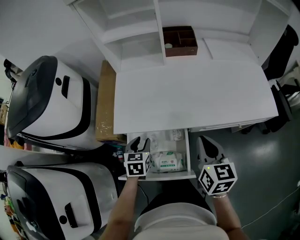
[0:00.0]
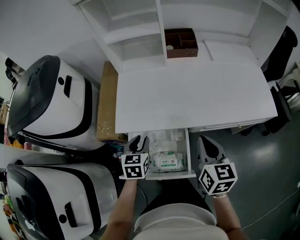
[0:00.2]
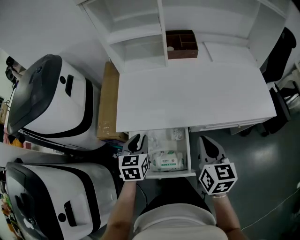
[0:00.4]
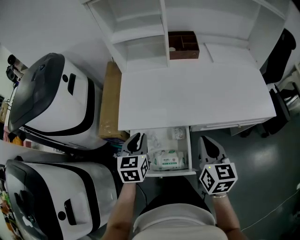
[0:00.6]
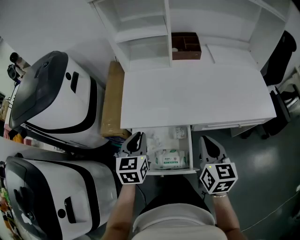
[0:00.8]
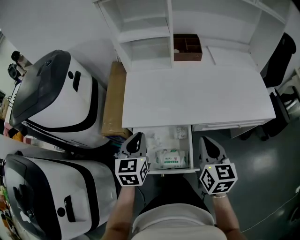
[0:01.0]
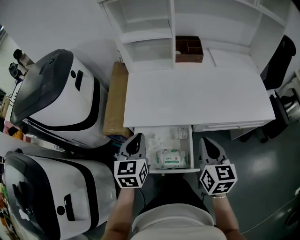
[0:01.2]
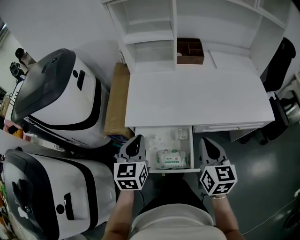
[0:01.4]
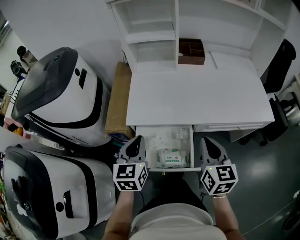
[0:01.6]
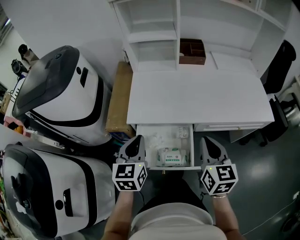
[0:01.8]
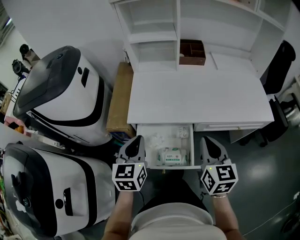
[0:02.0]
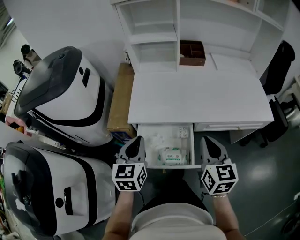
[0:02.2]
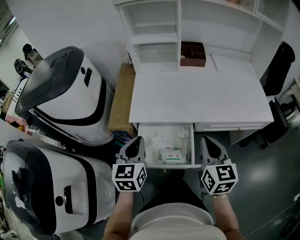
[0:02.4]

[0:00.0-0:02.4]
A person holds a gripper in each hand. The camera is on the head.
0:00.0 to 0:01.2: The left gripper goes roughly 15 cm upward, rotates about 20 degrees, and closes. Meanwhile the right gripper moves some 5 cm.
0:01.2 to 0:02.4: The left gripper heads backward, covering approximately 5 cm.

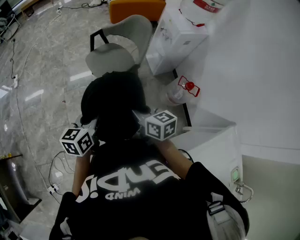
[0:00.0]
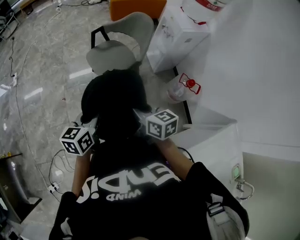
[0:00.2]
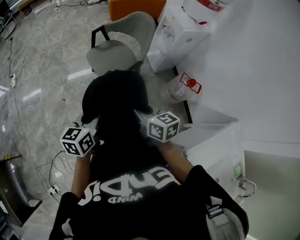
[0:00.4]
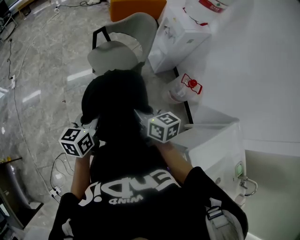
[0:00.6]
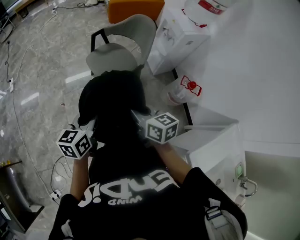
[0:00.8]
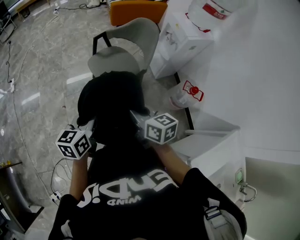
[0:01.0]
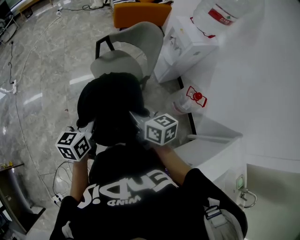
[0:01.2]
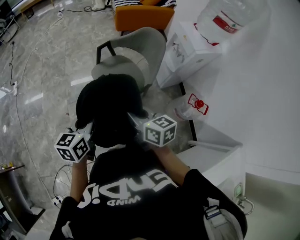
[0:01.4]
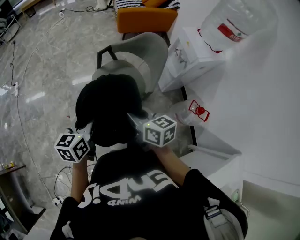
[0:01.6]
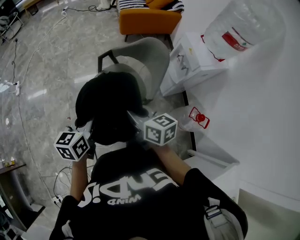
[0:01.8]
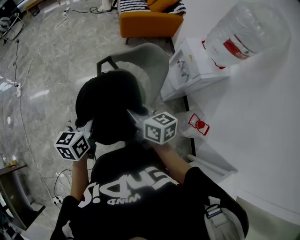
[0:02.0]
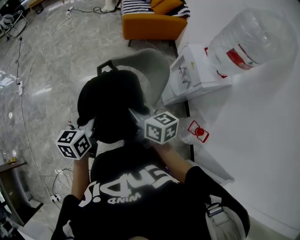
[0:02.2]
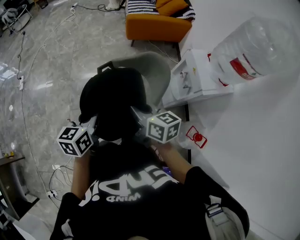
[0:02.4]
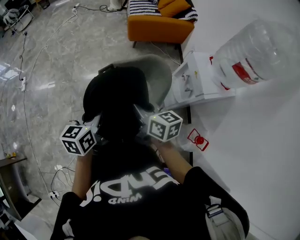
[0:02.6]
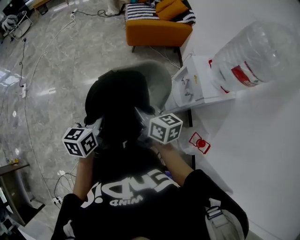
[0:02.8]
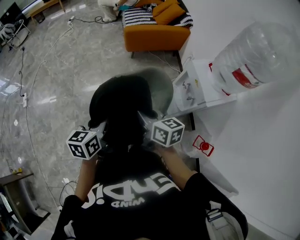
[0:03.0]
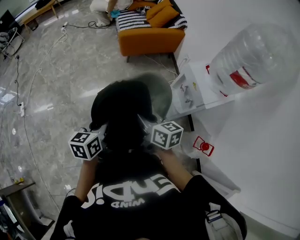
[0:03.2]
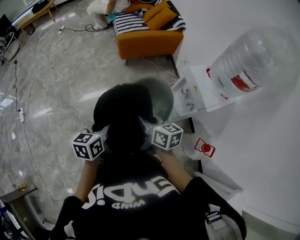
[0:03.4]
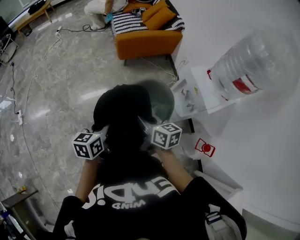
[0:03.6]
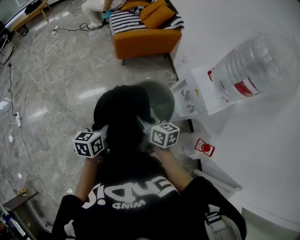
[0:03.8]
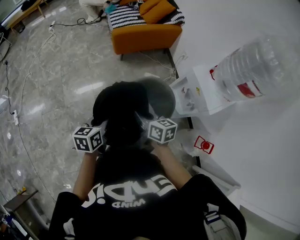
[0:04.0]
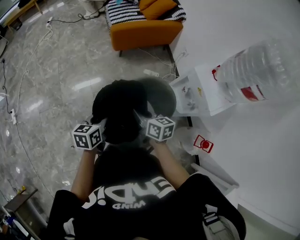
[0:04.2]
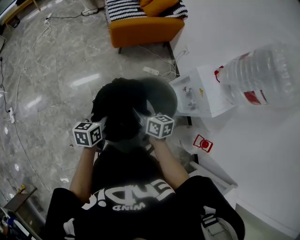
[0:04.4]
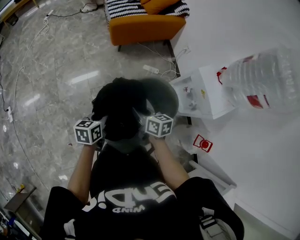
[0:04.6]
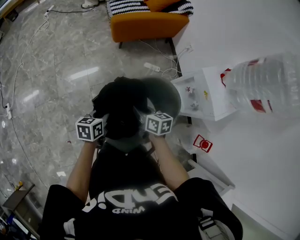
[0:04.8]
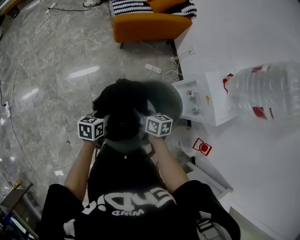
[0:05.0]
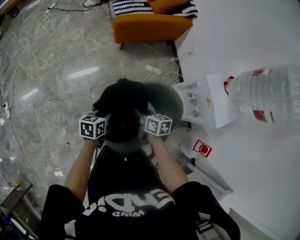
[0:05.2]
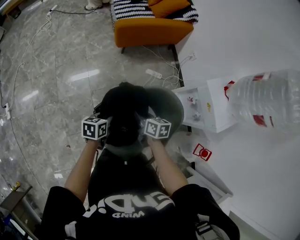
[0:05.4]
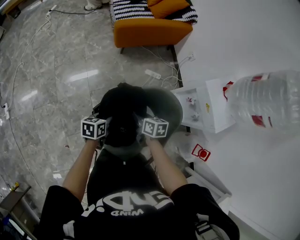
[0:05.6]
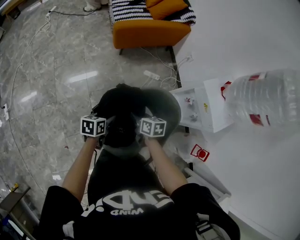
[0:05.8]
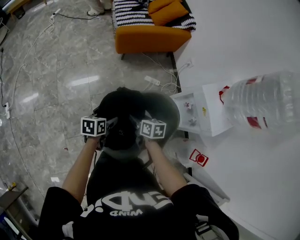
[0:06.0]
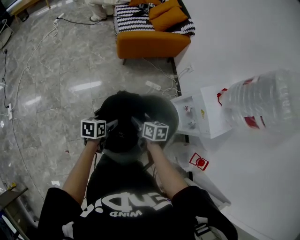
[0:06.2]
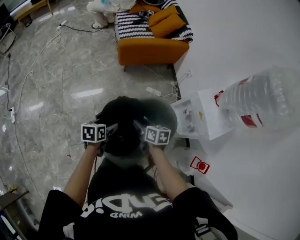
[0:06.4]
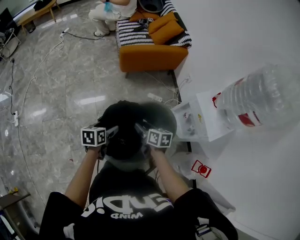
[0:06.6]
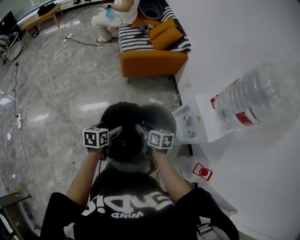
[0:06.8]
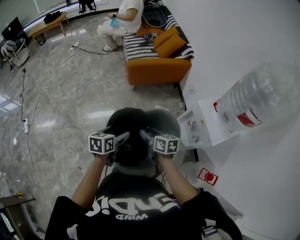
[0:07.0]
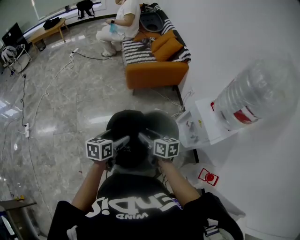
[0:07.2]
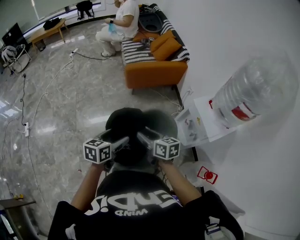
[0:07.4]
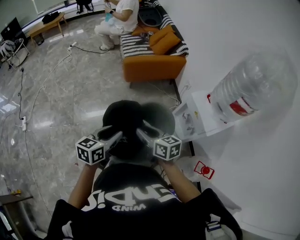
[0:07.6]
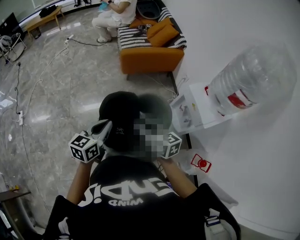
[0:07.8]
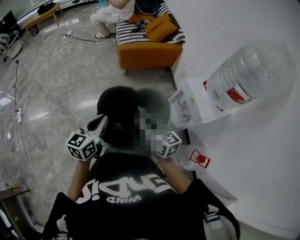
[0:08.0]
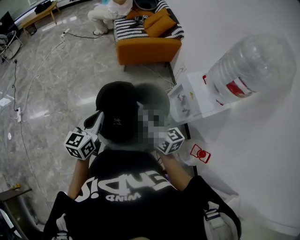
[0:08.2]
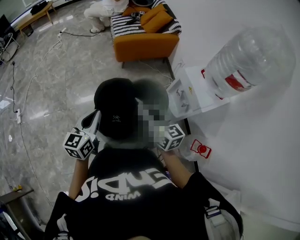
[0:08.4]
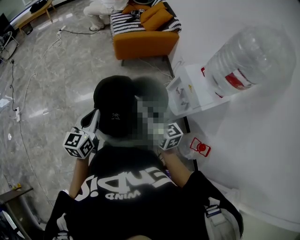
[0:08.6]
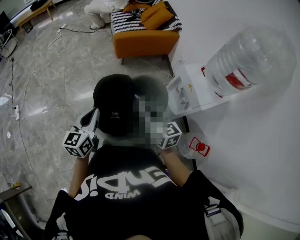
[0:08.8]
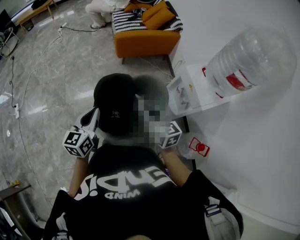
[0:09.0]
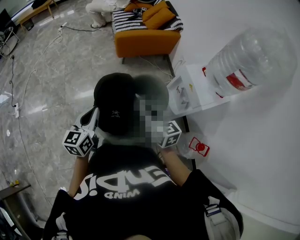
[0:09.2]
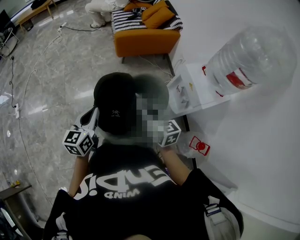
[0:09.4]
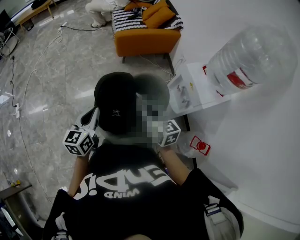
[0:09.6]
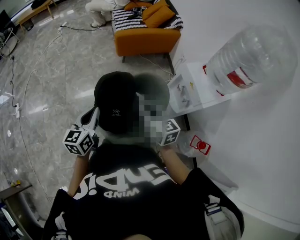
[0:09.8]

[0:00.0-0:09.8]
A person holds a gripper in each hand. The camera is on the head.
0:00.0 to 0:01.4: Both grippers travel together forward and to the left, roughly 20 cm.
0:01.4 to 0:02.8: Both grippers move forward and to the right, about 35 cm.
0:02.8 to 0:04.2: Both grippers move forward and downward, some 20 cm.
0:04.2 to 0:05.6: The two grippers go approximately 15 cm downward and forward.
0:05.6 to 0:07.0: The left gripper is displaced upward by about 15 cm, and opens up. Meanwhile the right gripper heads upward and backward, covering some 15 cm, and opens up.
0:07.0 to 0:08.4: Both grippers travel together upward and backward, about 15 cm. The left gripper rotates approximately 30 degrees, and closes. Meanwhile the right gripper turns by about 30 degrees, and closes.
0:08.4 to 0:09.8: There are only small adjustments of the grippers.

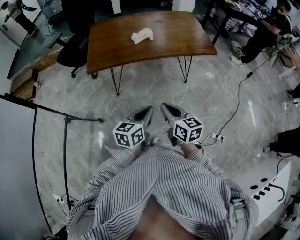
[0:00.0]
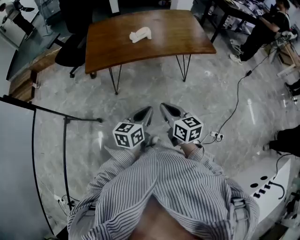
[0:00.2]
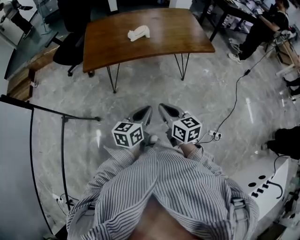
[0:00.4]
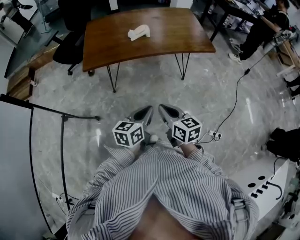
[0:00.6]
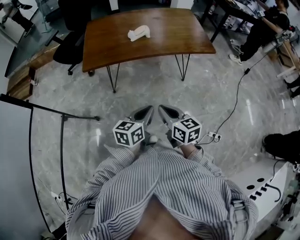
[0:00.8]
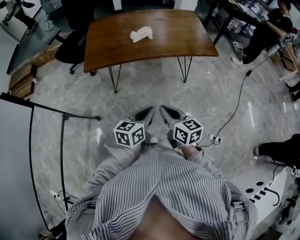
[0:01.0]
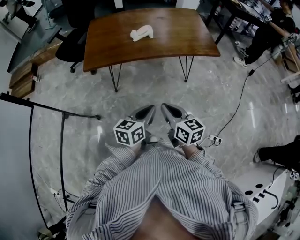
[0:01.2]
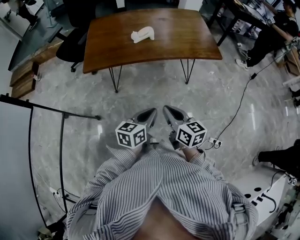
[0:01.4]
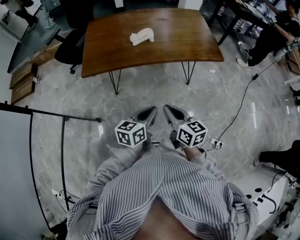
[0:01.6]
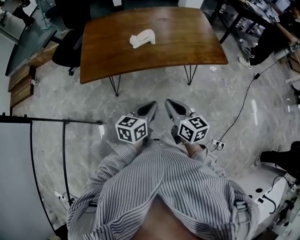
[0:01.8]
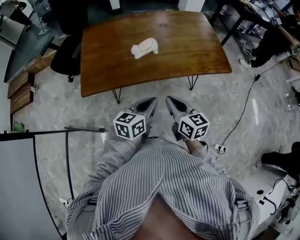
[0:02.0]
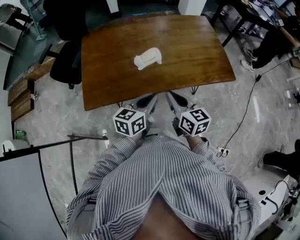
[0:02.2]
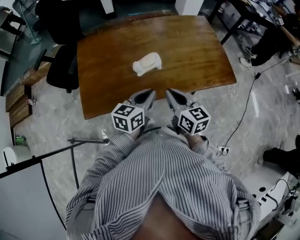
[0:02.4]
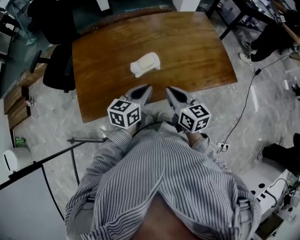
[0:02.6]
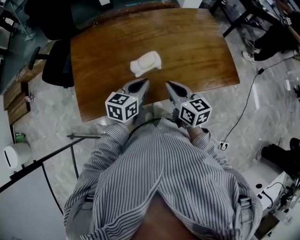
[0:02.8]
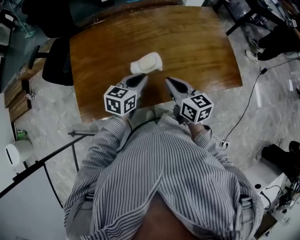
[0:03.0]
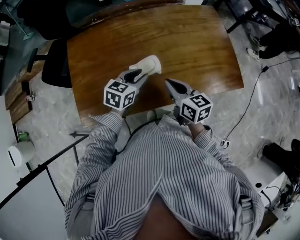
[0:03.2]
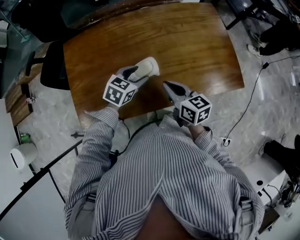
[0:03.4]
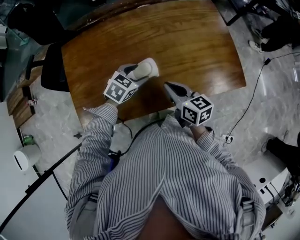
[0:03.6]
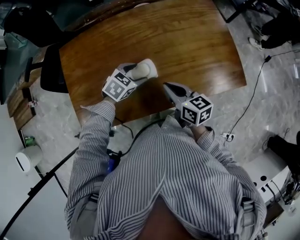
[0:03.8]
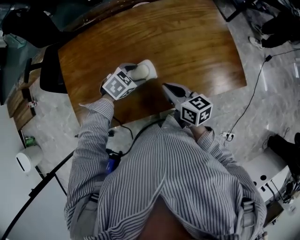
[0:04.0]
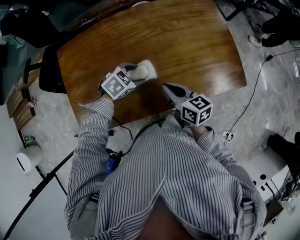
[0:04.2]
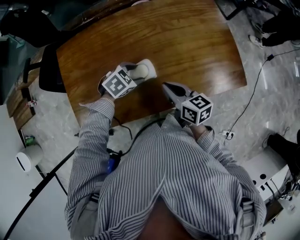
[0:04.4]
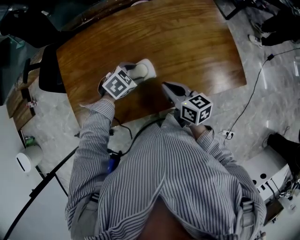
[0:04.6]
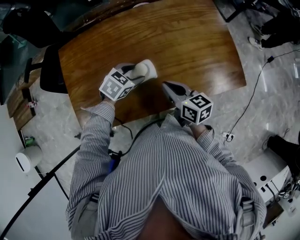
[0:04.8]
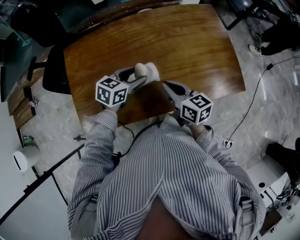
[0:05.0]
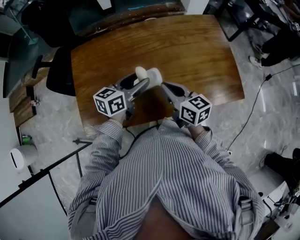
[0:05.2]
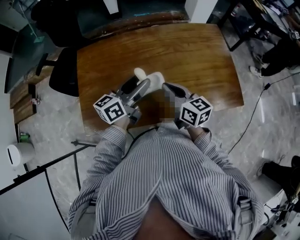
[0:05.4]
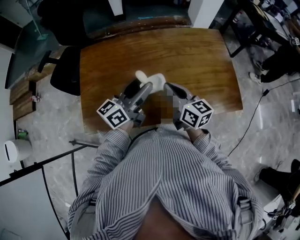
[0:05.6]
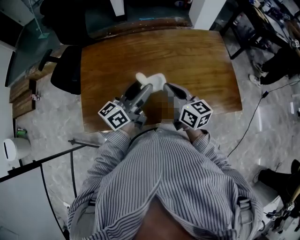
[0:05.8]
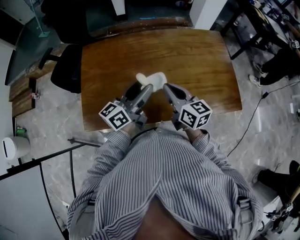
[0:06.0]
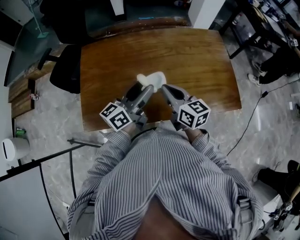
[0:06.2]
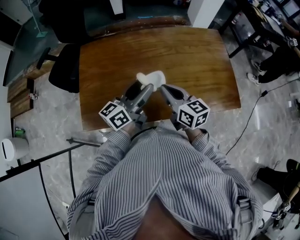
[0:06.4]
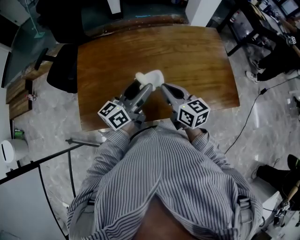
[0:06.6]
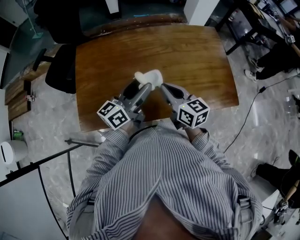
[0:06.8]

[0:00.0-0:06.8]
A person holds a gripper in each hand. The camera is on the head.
0:00.0 to 0:01.4: The right gripper ends up some 5 cm from where it was. The left gripper changes place by approximately 5 cm.
0:01.4 to 0:02.8: Both grippers are carried forward, some 40 cm.
0:02.8 to 0:04.0: The left gripper moves forward and downward, some 15 cm, tips its fingers downward by roughly 30 degrees, and opens its fingers. The right gripper is displaced forward and downward by about 10 cm.
0:04.0 to 0:05.4: The left gripper moves upward, roughly 20 cm, and points its fingers about 50 degrees further upward. The right gripper shifts approximately 5 cm upward.
0:05.4 to 0:06.8: There are only small adjustments of the grippers.

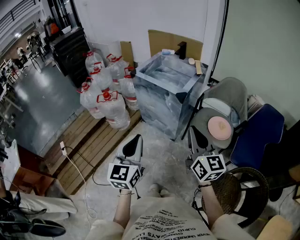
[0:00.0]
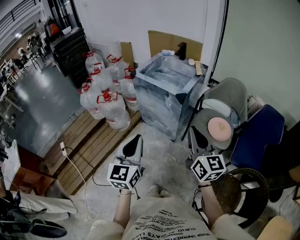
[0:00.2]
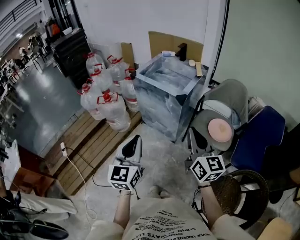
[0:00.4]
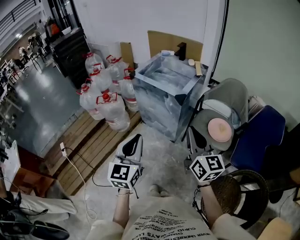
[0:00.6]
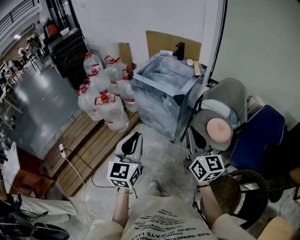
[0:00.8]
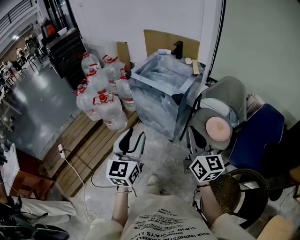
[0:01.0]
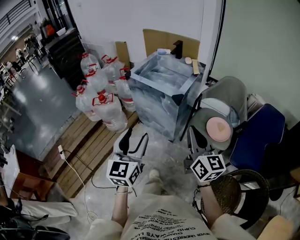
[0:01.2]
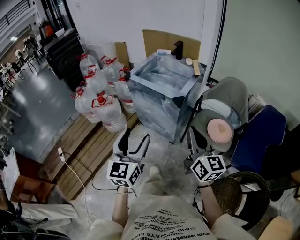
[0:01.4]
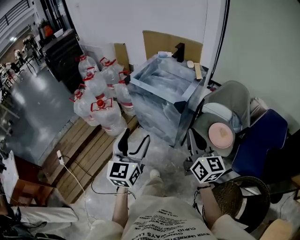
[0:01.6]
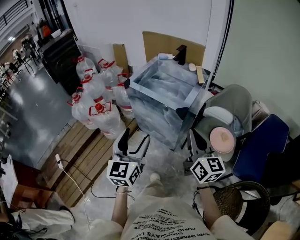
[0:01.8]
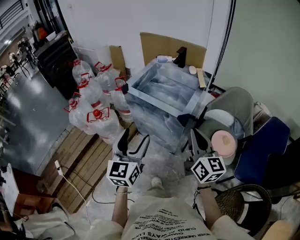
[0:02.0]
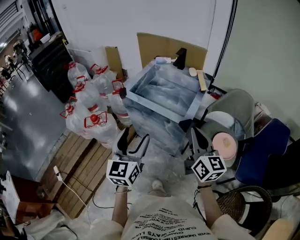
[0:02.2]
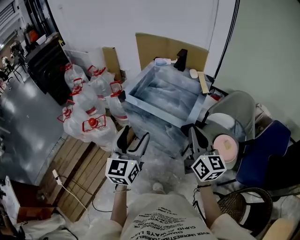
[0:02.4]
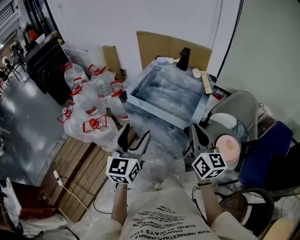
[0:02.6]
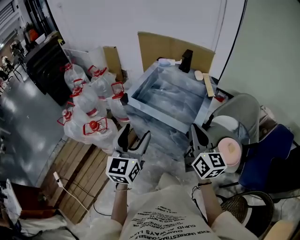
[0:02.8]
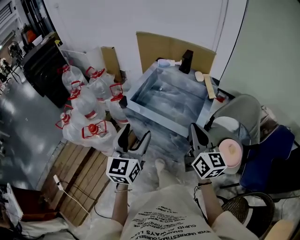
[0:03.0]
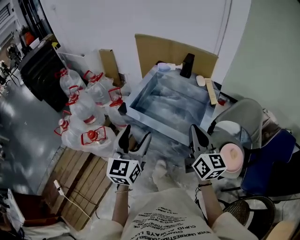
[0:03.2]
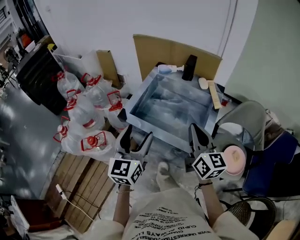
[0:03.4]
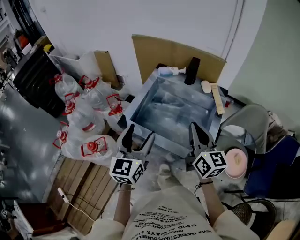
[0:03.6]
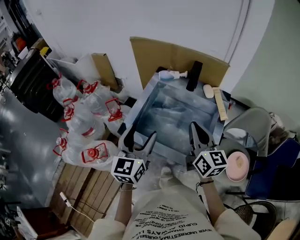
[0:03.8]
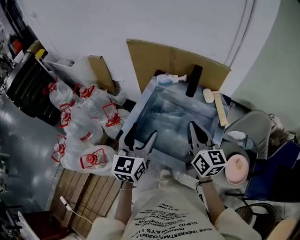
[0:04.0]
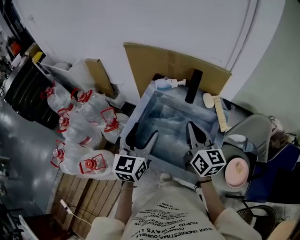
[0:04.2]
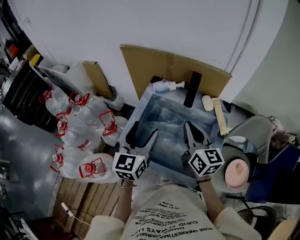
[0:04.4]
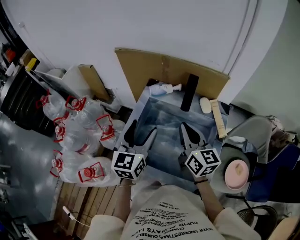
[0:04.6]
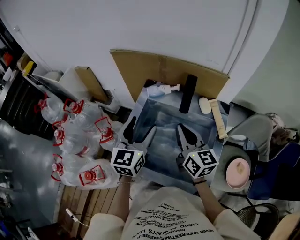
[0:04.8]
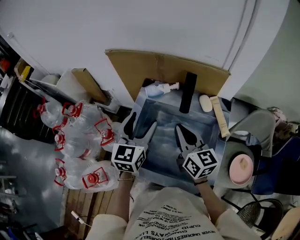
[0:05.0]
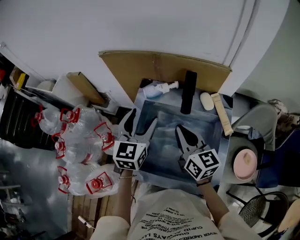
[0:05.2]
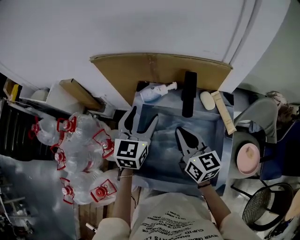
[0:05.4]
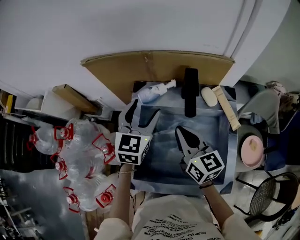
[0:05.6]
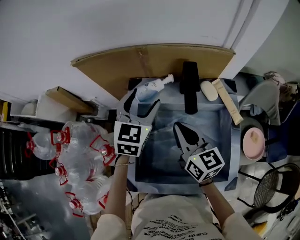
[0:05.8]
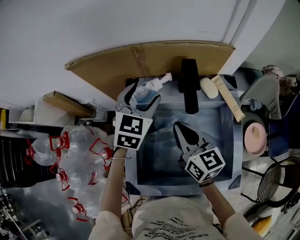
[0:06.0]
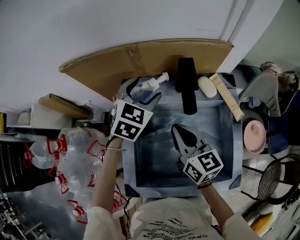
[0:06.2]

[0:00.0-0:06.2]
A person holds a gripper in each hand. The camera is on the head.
0:00.0 to 0:01.6: Both grippers move forward, about 10 cm. The left gripper opens its fingers.
0:01.6 to 0:03.2: Both grippers travel together forward, about 30 cm.
0:03.2 to 0:04.6: The grippers both shift forward by approximately 25 cm.
0:04.6 to 0:06.2: The right gripper goes approximately 10 cm downward and forward; the left gripper goes about 20 cm forward, and changes its angle by about 50 degrees.
